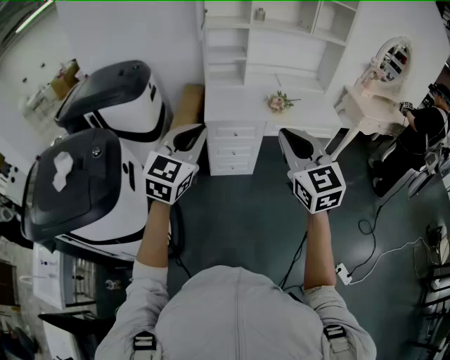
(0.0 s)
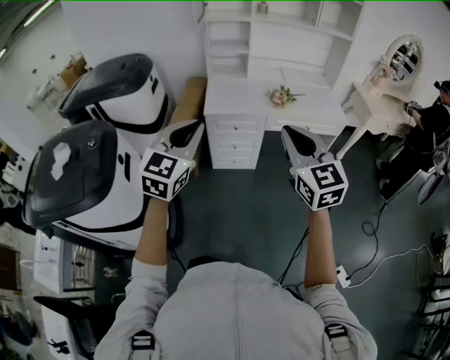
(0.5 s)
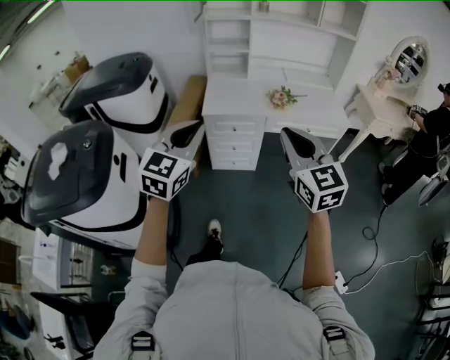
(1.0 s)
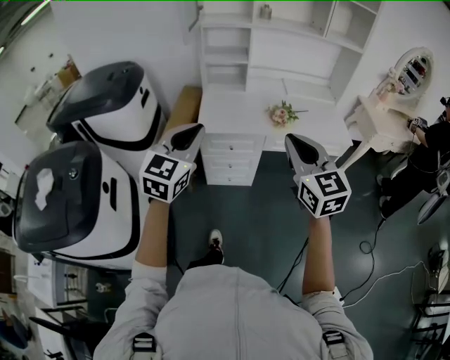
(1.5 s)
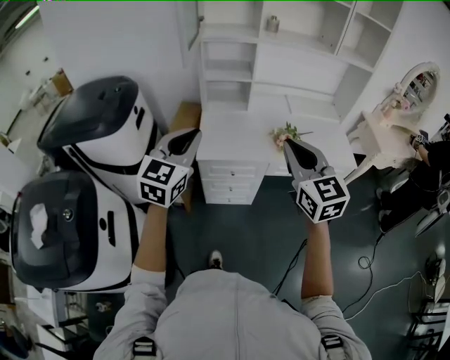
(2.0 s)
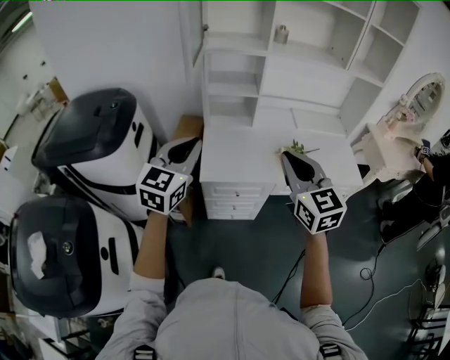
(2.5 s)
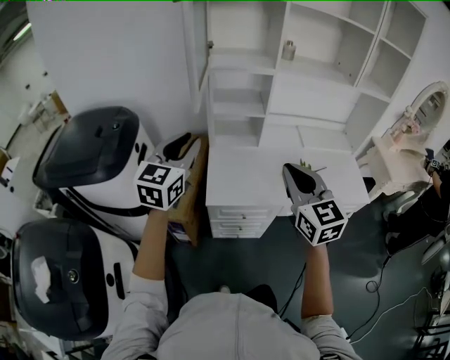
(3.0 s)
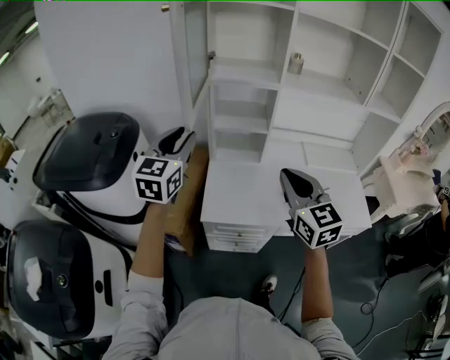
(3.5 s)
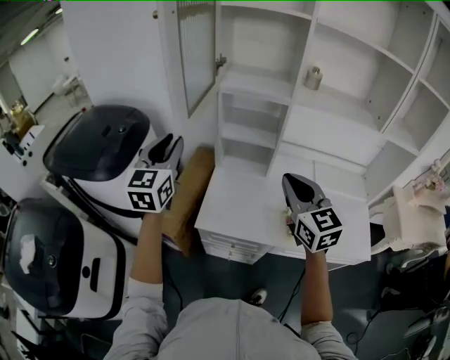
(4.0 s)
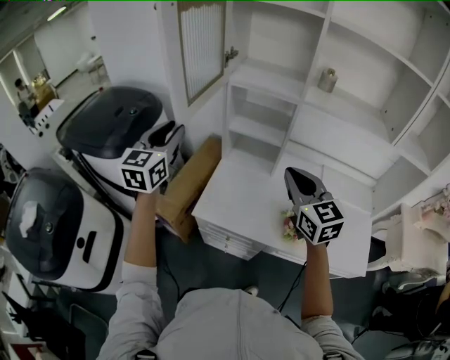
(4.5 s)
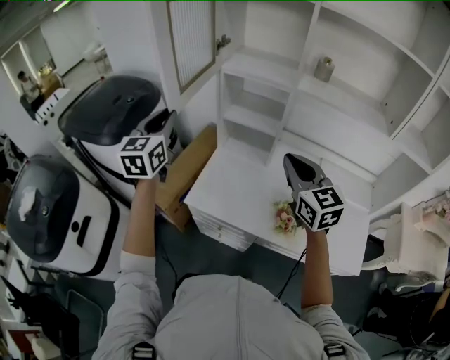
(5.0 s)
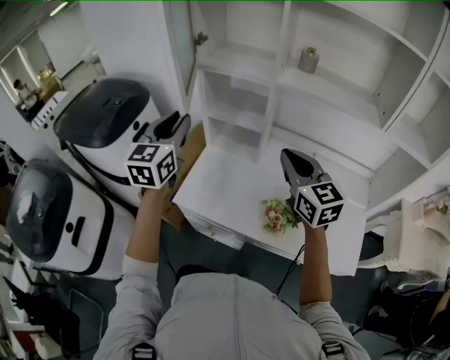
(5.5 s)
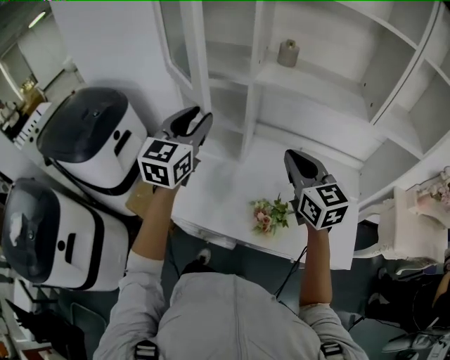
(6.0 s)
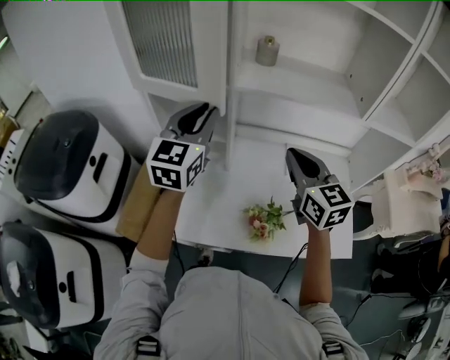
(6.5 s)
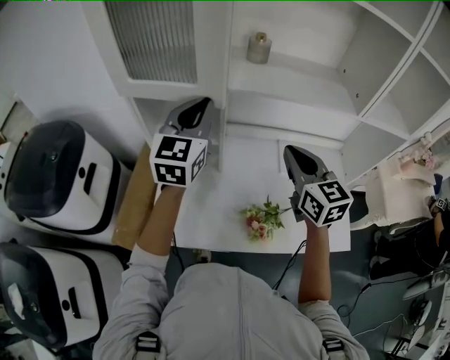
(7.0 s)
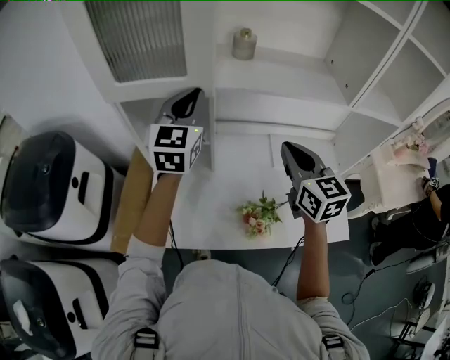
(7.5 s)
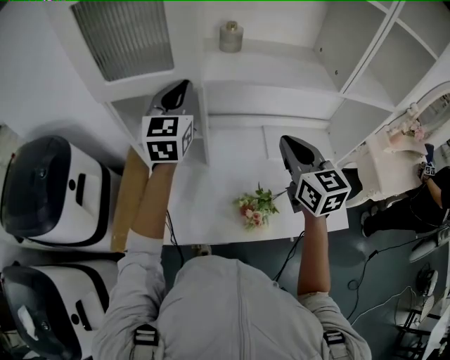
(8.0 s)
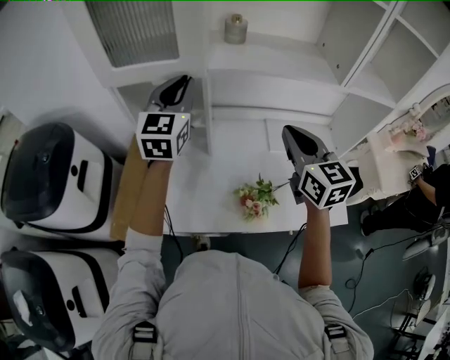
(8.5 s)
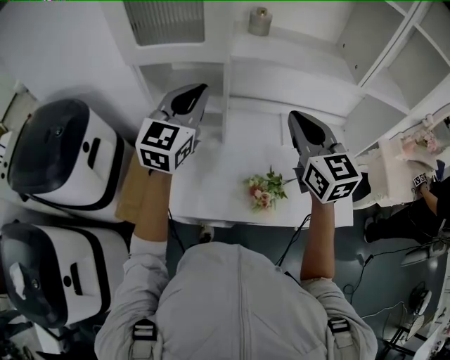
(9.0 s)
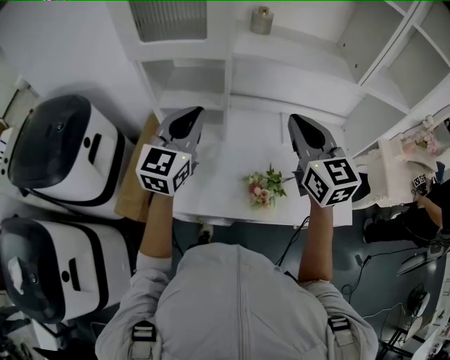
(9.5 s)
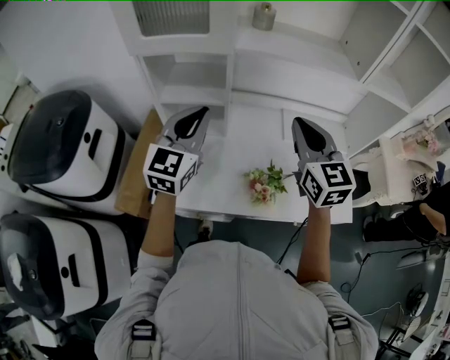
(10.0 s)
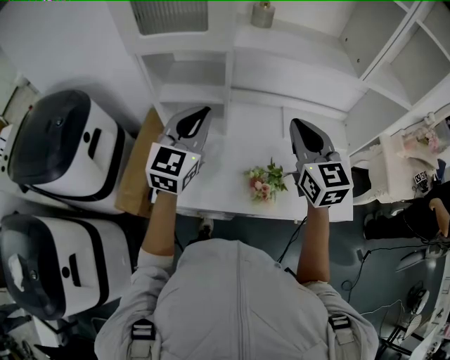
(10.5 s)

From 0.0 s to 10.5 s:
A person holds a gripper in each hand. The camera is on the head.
From 0.0 s to 2.0 s: Both grippers travel together forward, some 30 cm.
From 2.0 s to 4.0 s: Both grippers move forward, roughly 30 cm. The left gripper turns by some 30 degrees, and opens up.
From 4.0 s to 6.5 s: The right gripper is displaced to the right and forward by approximately 25 cm; the left gripper goes roughly 30 cm to the right.
From 8.5 s to 10.5 s: The left gripper is displaced backward and downward by about 15 cm.

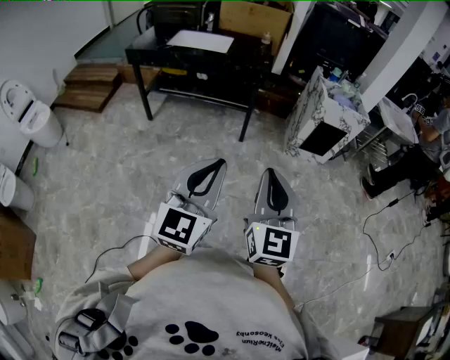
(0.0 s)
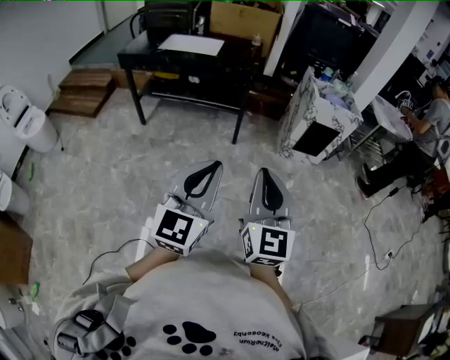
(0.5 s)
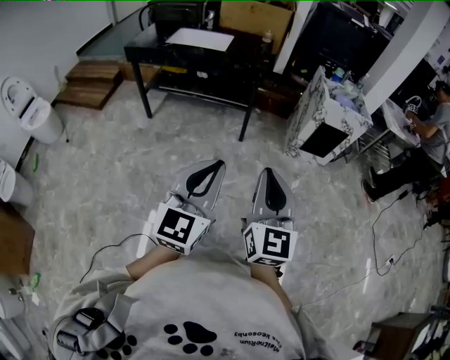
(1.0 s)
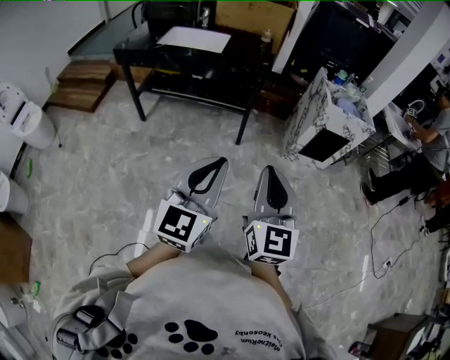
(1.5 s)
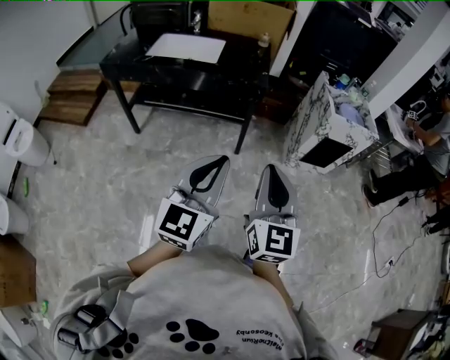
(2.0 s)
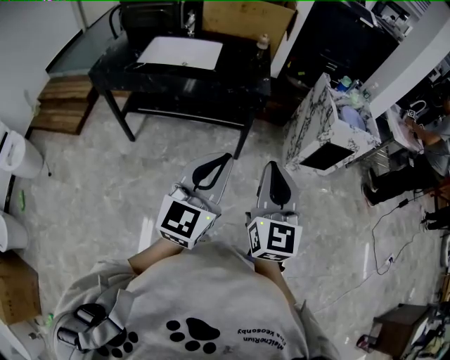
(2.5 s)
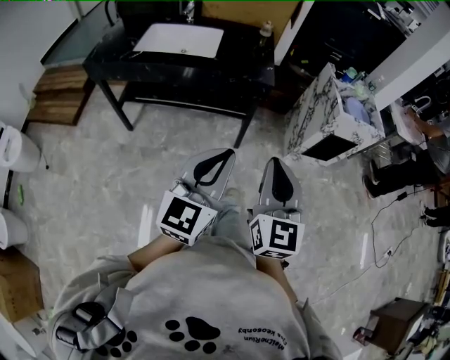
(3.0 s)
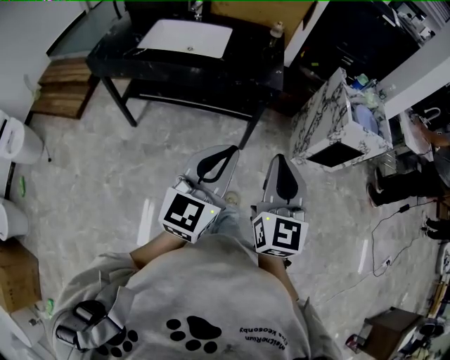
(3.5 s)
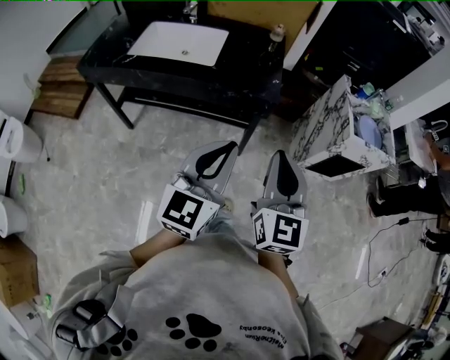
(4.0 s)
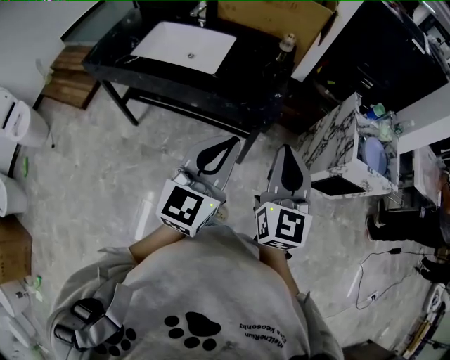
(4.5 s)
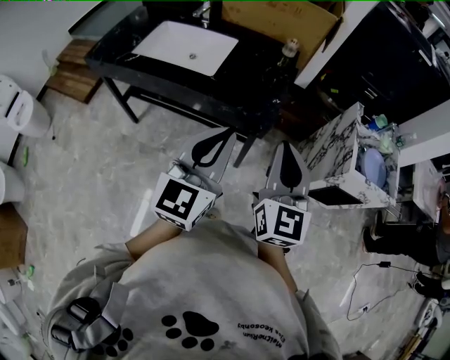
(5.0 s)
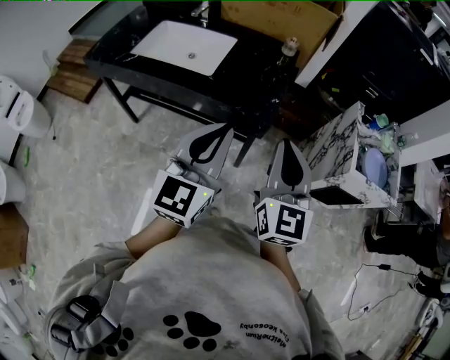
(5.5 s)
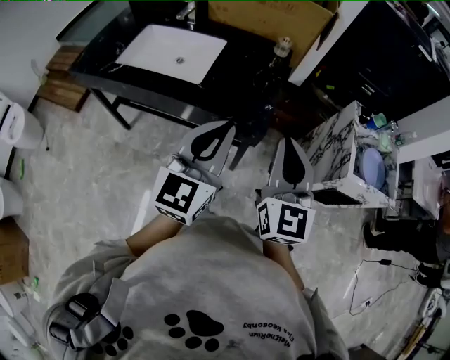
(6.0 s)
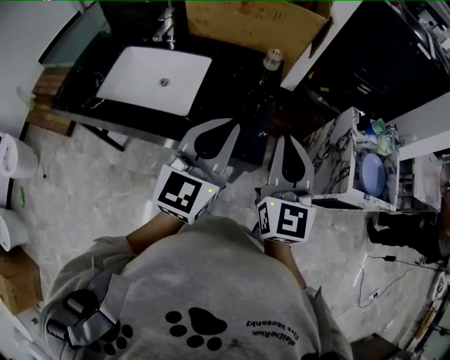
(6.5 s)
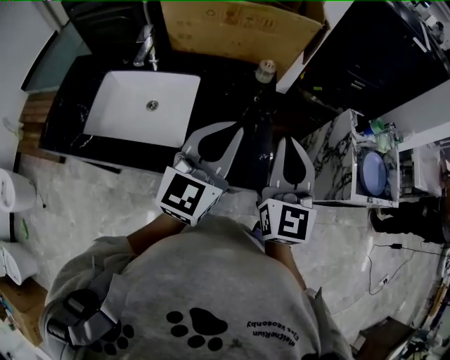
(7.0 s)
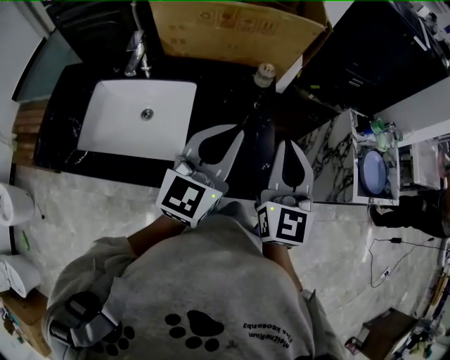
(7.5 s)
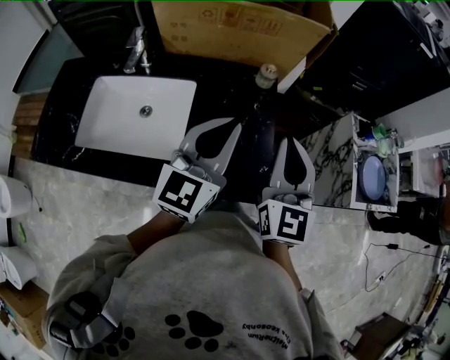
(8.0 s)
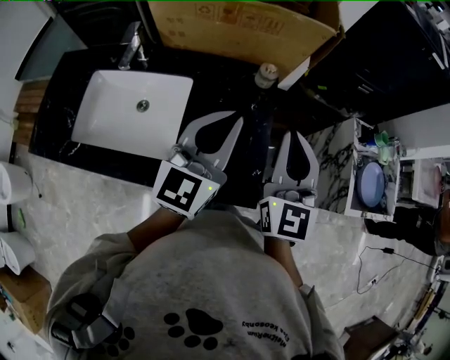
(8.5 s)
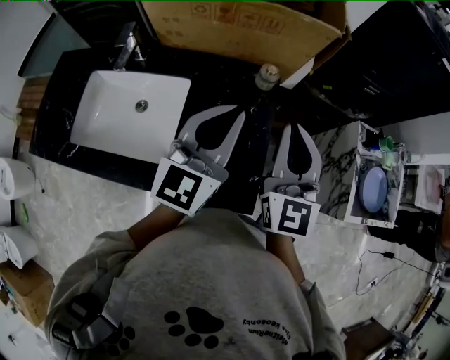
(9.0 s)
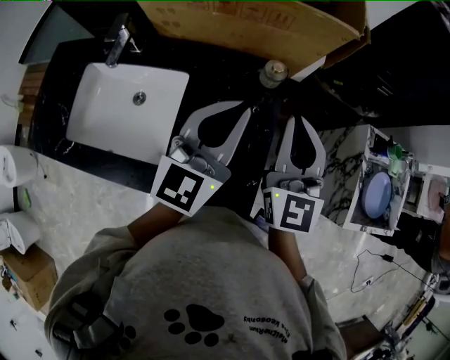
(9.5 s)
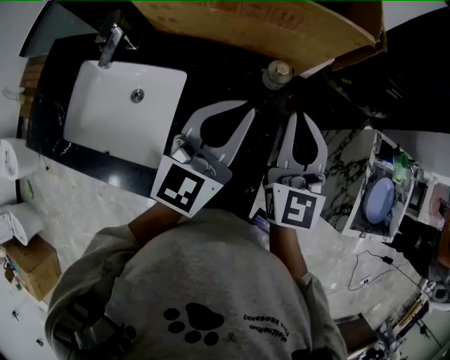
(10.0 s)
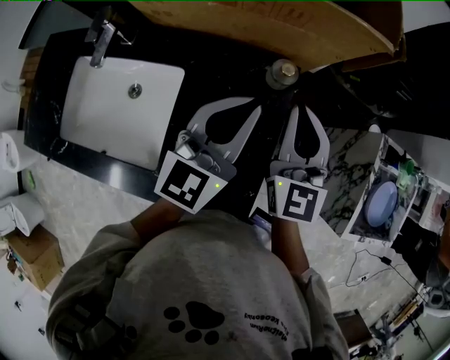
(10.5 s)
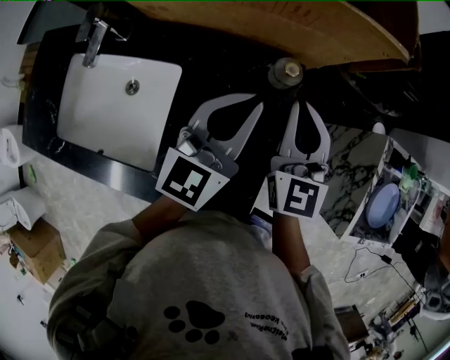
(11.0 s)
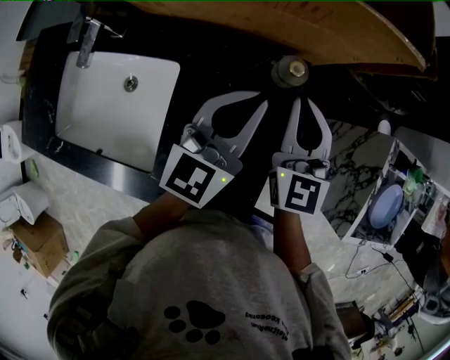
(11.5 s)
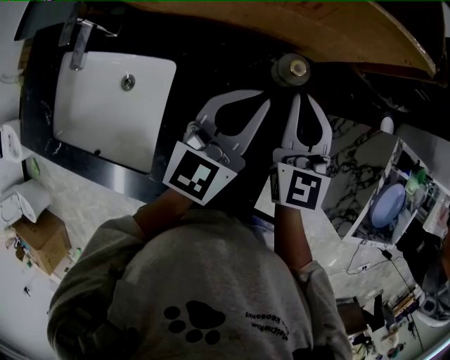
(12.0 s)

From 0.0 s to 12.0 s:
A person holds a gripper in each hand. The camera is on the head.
From 0.0 s to 2.0 s: The two grippers go some 25 cm forward.
From 2.0 s to 4.0 s: The grippers both shift forward by some 25 cm.
From 4.0 s to 6.0 s: The two grippers go approximately 20 cm forward.
From 6.0 s to 8.0 s: The grippers both shift forward by some 25 cm.
From 8.0 s to 10.0 s: The two grippers go about 15 cm forward.
From 10.0 s to 12.0 s: Both grippers travel together downward and forward, approximately 15 cm.

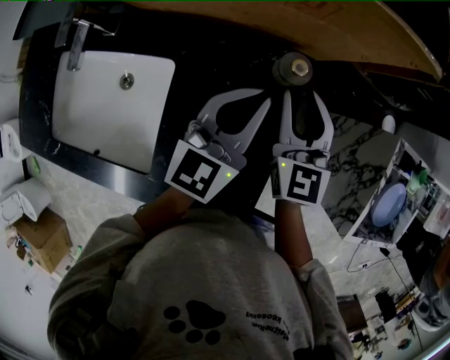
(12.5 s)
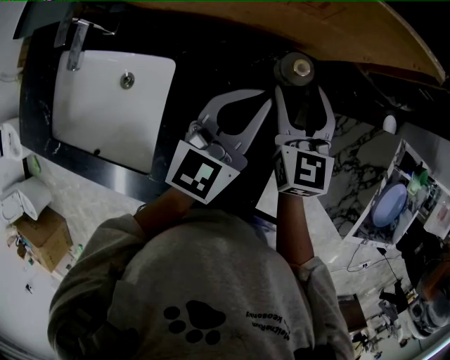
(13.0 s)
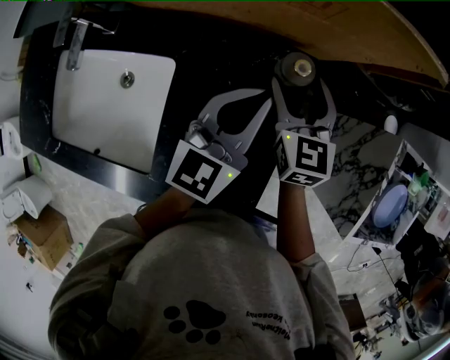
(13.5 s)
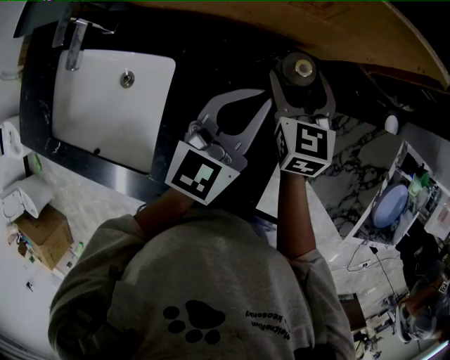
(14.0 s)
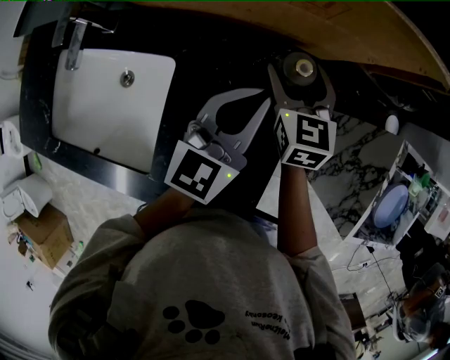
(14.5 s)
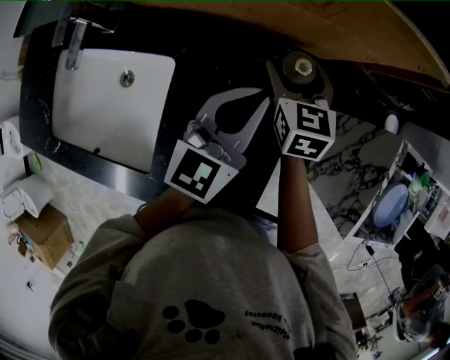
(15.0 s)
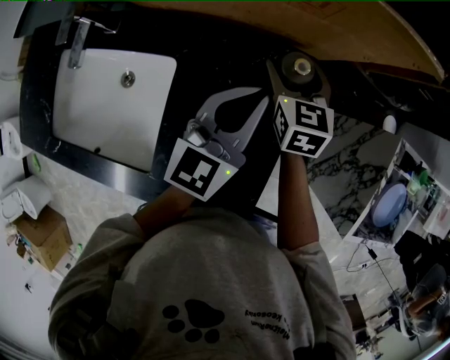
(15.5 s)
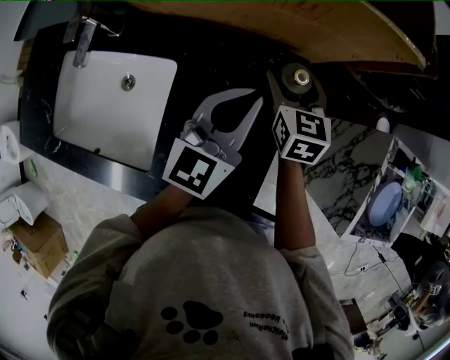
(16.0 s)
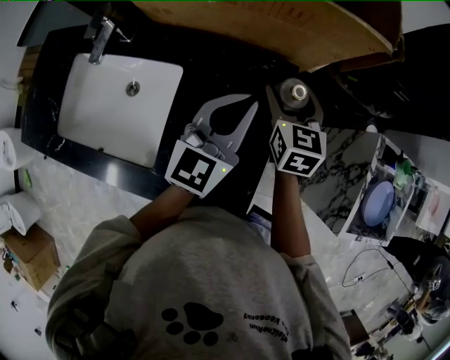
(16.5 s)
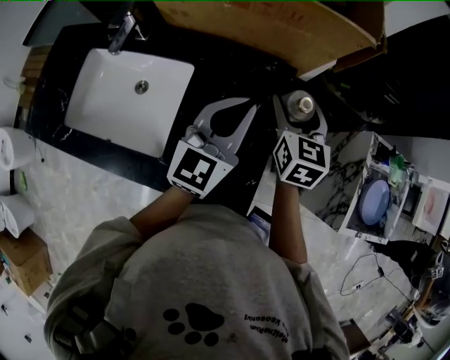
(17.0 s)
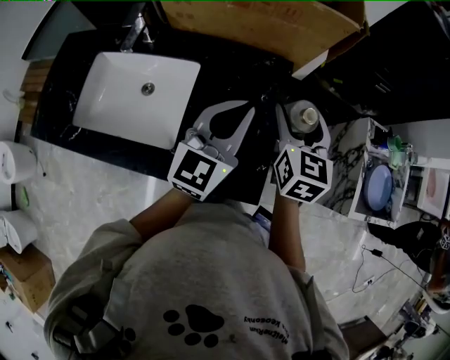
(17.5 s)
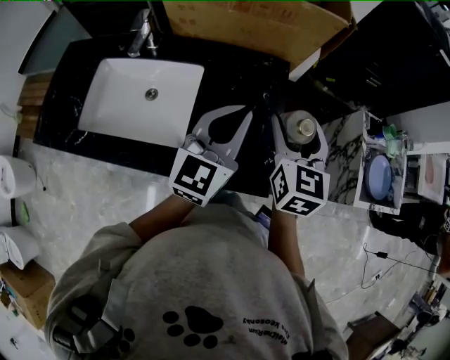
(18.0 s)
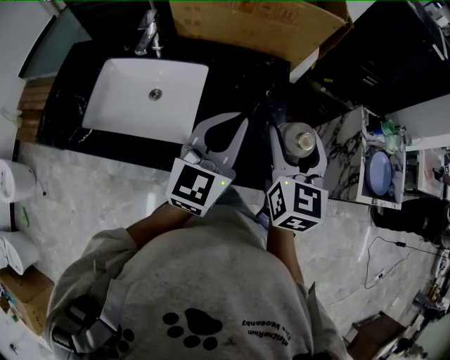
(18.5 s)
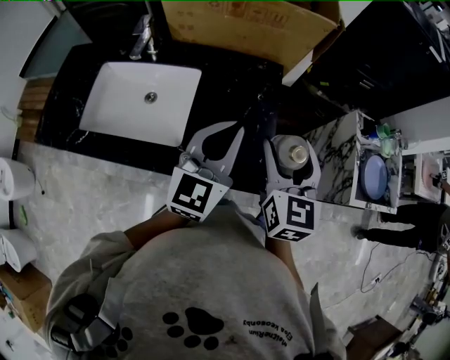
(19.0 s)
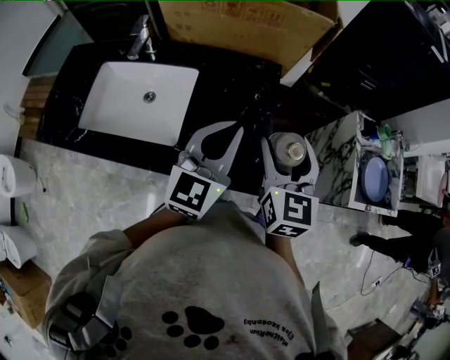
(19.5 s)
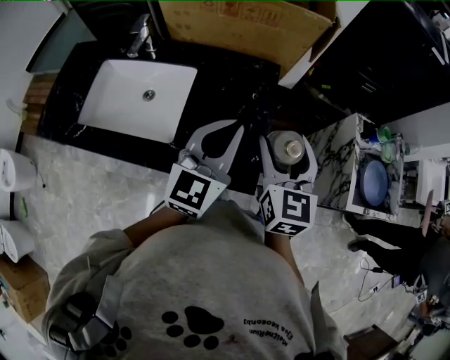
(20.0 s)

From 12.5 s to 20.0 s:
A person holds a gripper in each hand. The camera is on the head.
From 12.5 s to 14.5 s: The right gripper moves downward and forward, roughly 10 cm, and opens up.
From 14.5 s to 16.5 s: The left gripper travels upward by about 5 cm. Meanwhile the right gripper shifts by roughly 5 cm.
From 16.5 s to 18.0 s: The two grippers go roughly 20 cm backward and upward.
From 18.0 s to 20.0 s: The right gripper is displaced backward by approximately 5 cm; the left gripper ends up roughly 5 cm from where it was.
